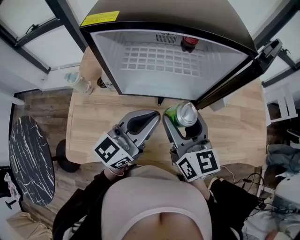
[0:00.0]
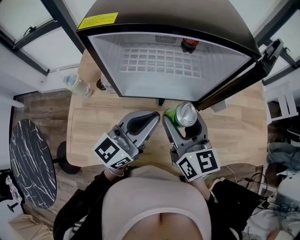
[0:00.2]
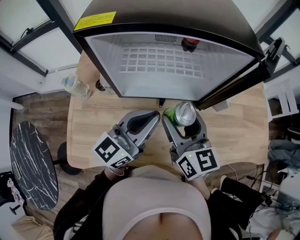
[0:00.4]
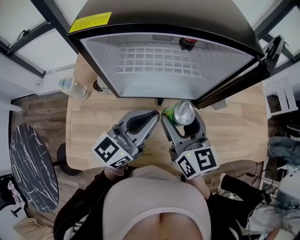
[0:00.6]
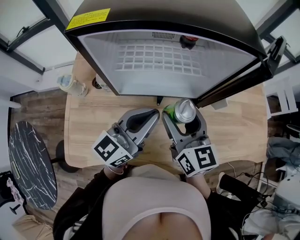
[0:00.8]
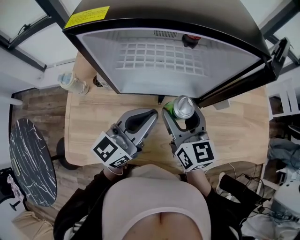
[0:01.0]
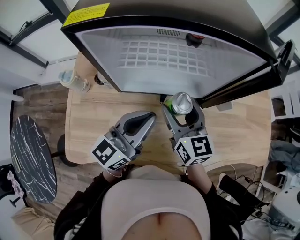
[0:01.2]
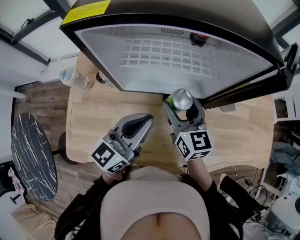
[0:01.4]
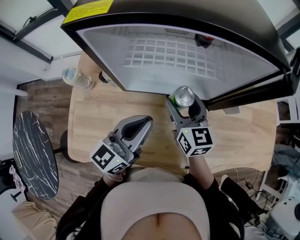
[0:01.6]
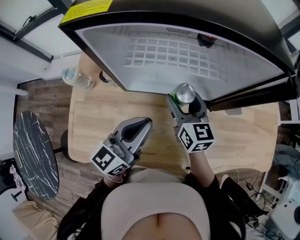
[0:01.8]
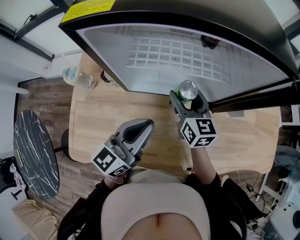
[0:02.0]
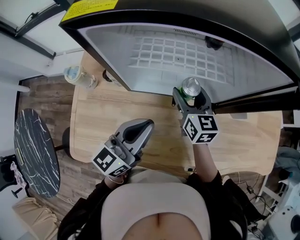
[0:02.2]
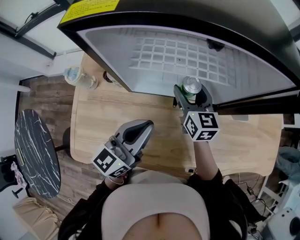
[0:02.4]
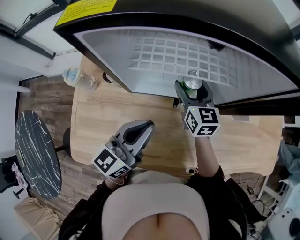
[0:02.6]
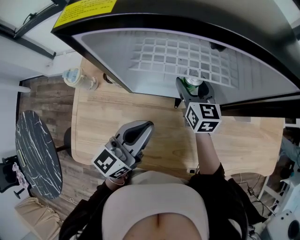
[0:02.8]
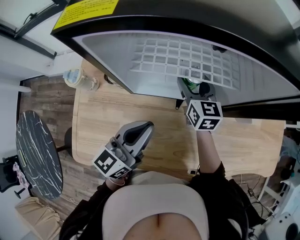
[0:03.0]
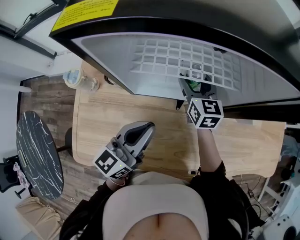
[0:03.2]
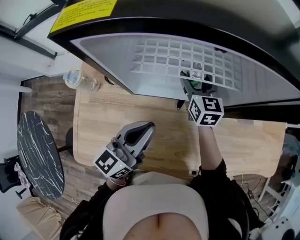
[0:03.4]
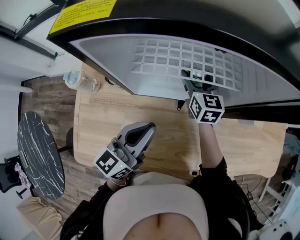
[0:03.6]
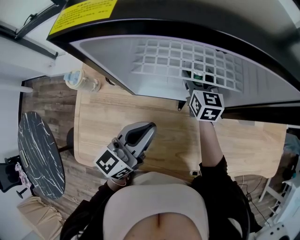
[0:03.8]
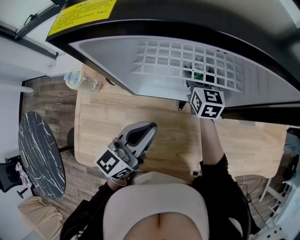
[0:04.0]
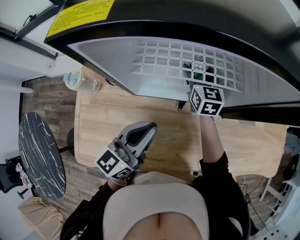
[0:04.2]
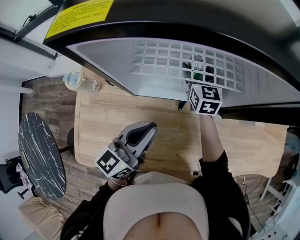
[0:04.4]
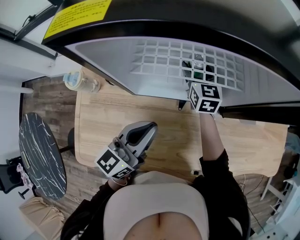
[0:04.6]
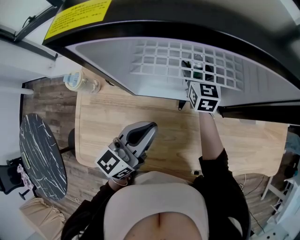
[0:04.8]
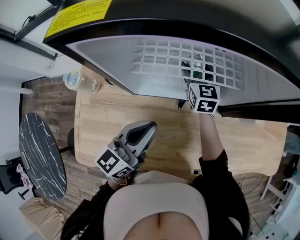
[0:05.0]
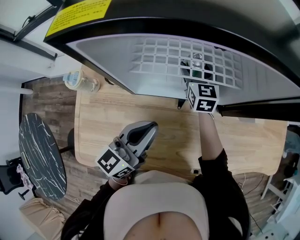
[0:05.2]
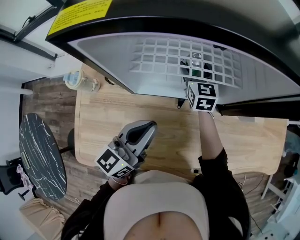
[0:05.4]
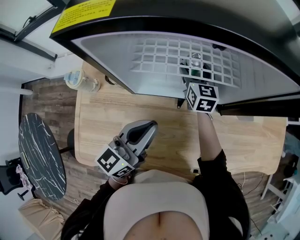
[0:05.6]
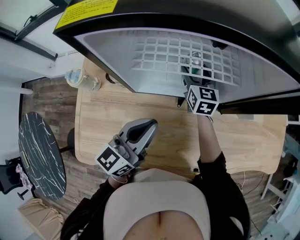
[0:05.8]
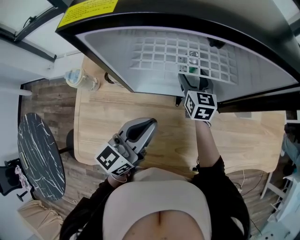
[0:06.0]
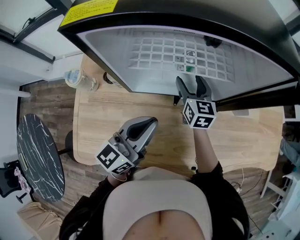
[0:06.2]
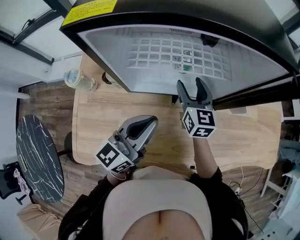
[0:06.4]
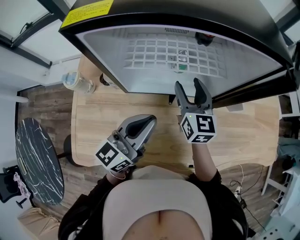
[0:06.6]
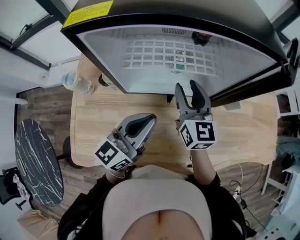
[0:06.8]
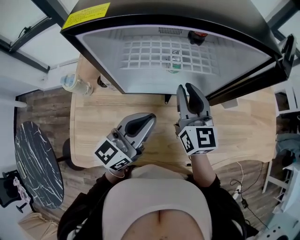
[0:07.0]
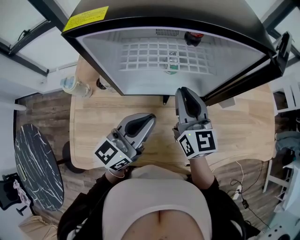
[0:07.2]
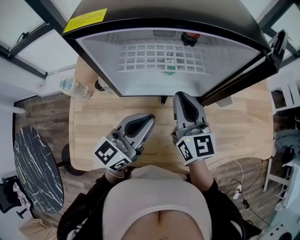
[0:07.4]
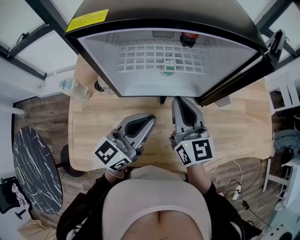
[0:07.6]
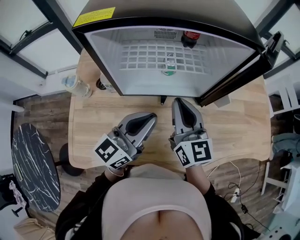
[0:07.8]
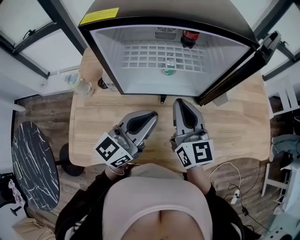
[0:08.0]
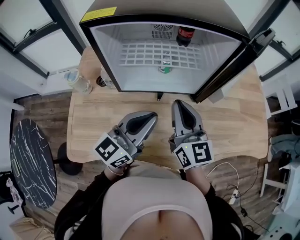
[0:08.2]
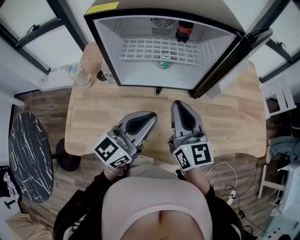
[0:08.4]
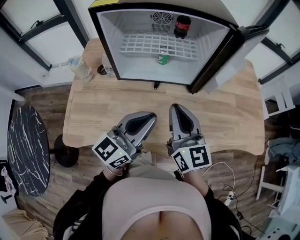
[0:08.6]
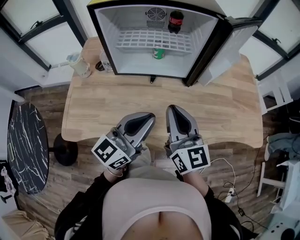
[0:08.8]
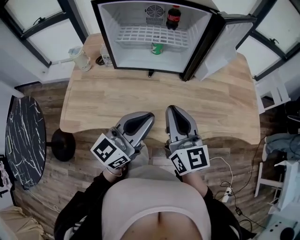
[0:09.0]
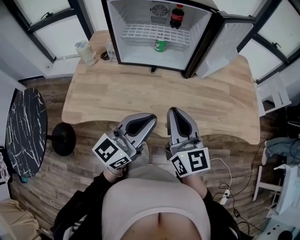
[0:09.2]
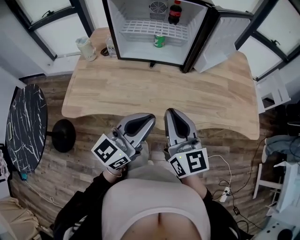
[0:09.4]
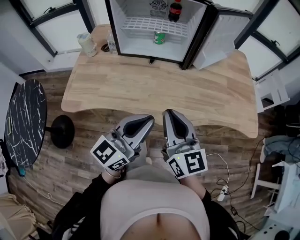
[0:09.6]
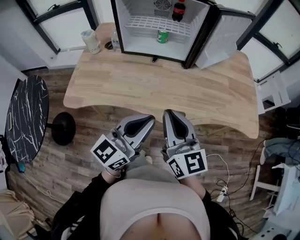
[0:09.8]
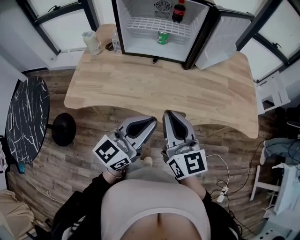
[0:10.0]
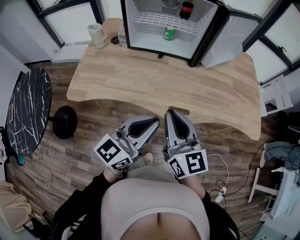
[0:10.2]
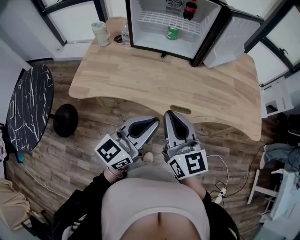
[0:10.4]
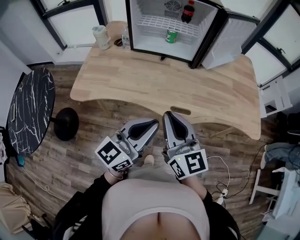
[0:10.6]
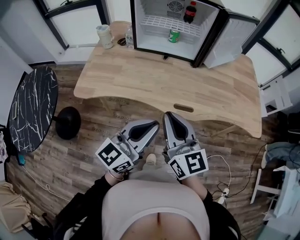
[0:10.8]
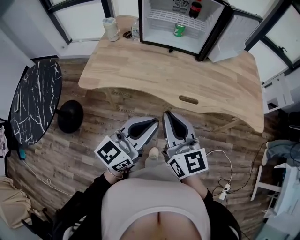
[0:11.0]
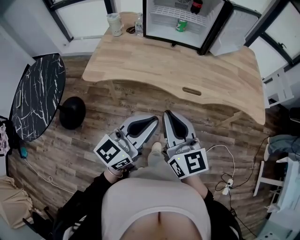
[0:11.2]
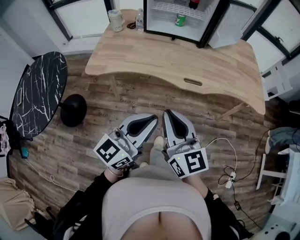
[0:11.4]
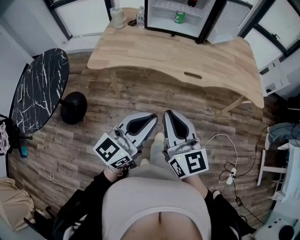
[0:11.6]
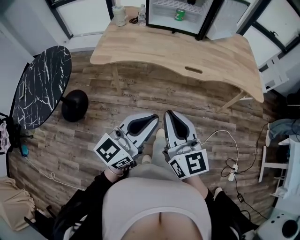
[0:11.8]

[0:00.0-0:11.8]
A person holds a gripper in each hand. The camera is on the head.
0:00.0 to 0:01.4: The left gripper heads downward, covering approximately 5 cm, while the right gripper heads downward and forward, covering about 10 cm.
0:01.4 to 0:03.0: The left gripper shifts by approximately 5 cm; the right gripper travels forward and downward by approximately 15 cm.
0:03.0 to 0:04.4: The right gripper travels forward by approximately 5 cm.
0:04.4 to 0:06.0: There are only small adjustments of the grippers.
0:06.0 to 0:07.4: The right gripper goes some 20 cm upward and backward, swivels roughly 20 degrees, and closes its fingers. The left gripper shifts by approximately 5 cm.
0:07.4 to 0:08.8: Both grippers move backward and to the right, about 20 cm.
0:08.8 to 0:10.4: Both grippers travel together backward, roughly 20 cm.
0:10.4 to 0:11.8: Both grippers travel together backward, approximately 30 cm.

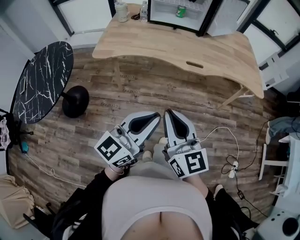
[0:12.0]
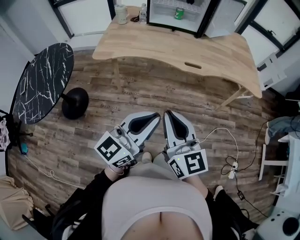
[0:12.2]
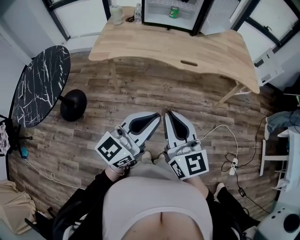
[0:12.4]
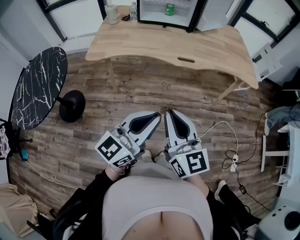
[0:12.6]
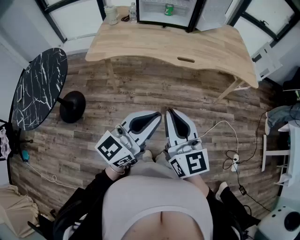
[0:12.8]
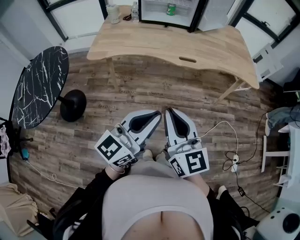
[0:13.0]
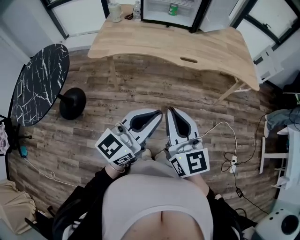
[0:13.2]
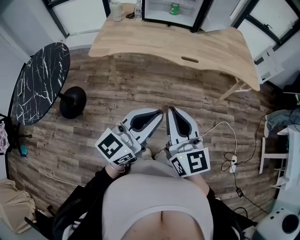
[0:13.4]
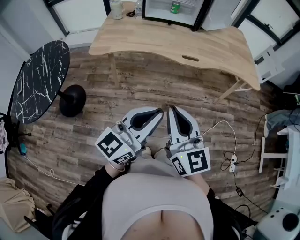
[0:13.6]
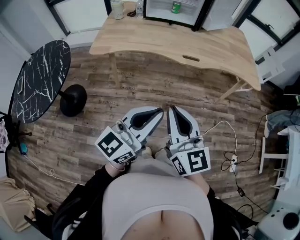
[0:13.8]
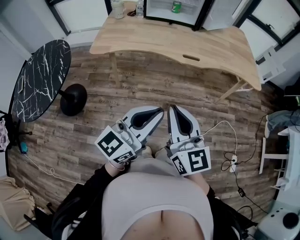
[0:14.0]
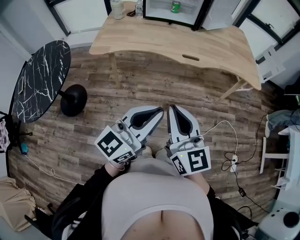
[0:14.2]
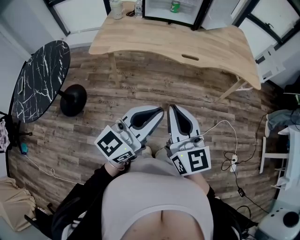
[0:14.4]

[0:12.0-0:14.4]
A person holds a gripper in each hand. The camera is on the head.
0:12.0 to 0:13.2: The grippers stay close to where they were, moving slightly.
0:13.2 to 0:14.4: Both grippers stay about where they are.

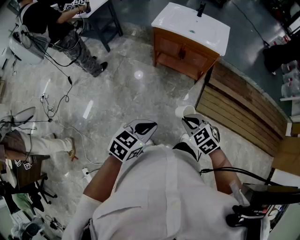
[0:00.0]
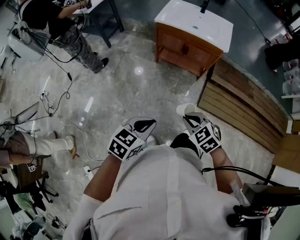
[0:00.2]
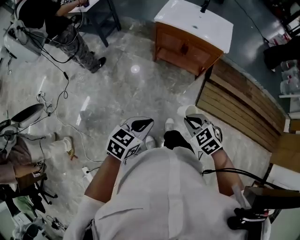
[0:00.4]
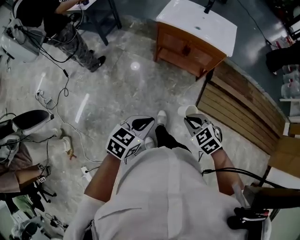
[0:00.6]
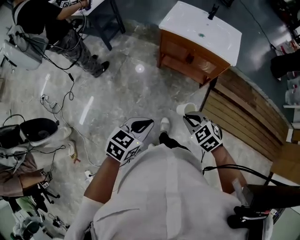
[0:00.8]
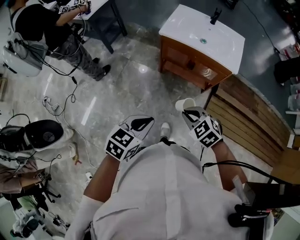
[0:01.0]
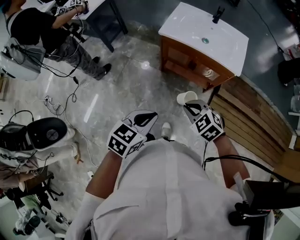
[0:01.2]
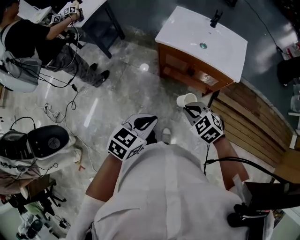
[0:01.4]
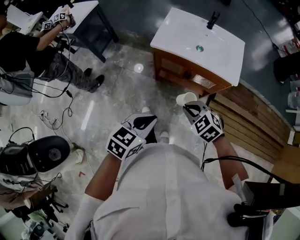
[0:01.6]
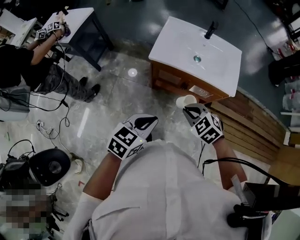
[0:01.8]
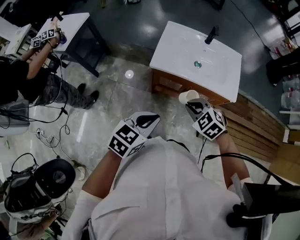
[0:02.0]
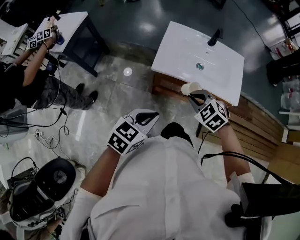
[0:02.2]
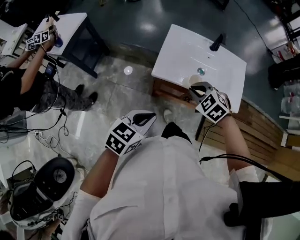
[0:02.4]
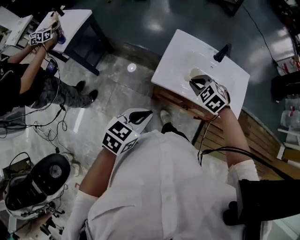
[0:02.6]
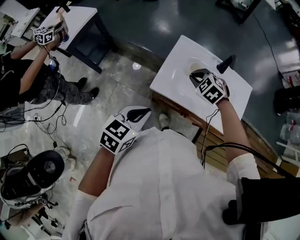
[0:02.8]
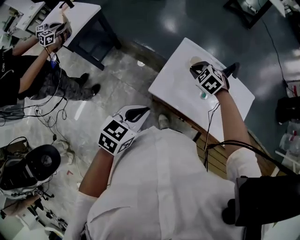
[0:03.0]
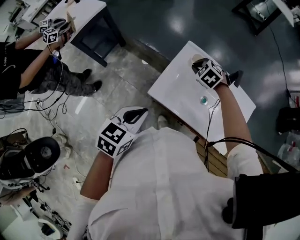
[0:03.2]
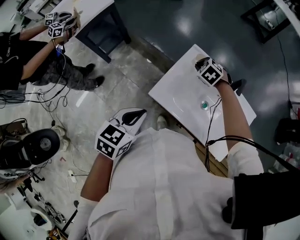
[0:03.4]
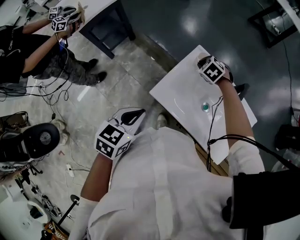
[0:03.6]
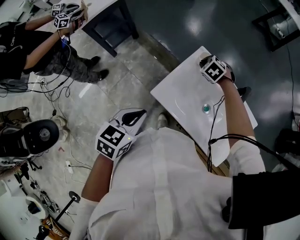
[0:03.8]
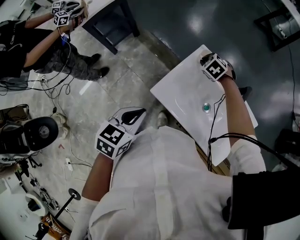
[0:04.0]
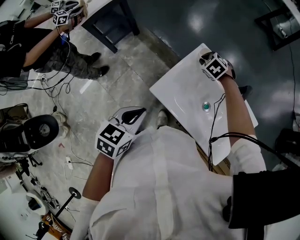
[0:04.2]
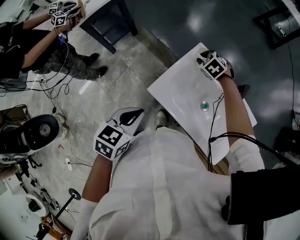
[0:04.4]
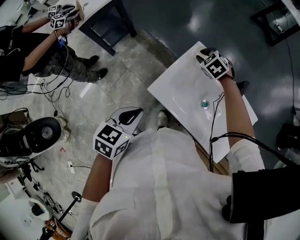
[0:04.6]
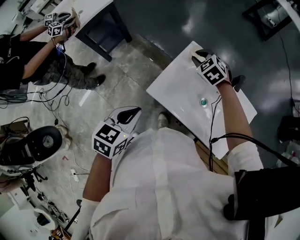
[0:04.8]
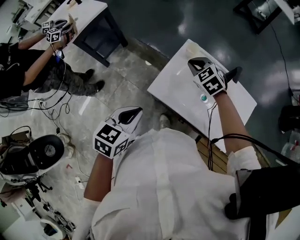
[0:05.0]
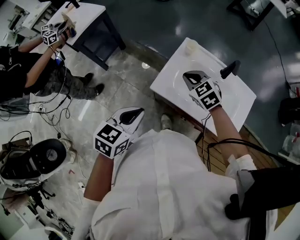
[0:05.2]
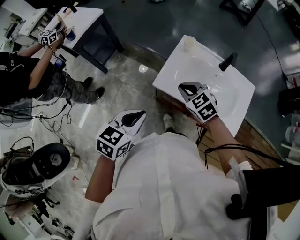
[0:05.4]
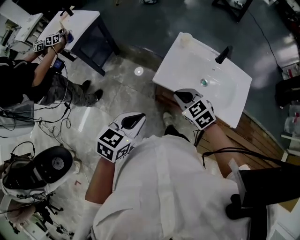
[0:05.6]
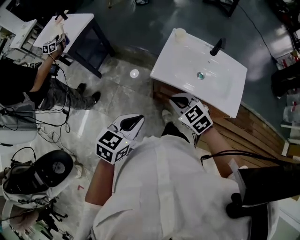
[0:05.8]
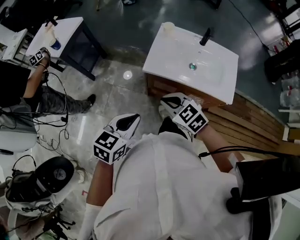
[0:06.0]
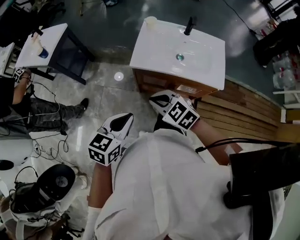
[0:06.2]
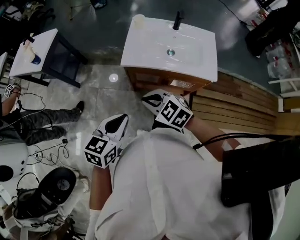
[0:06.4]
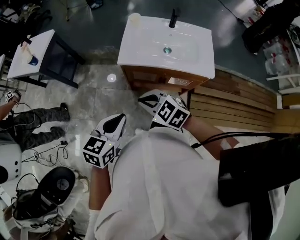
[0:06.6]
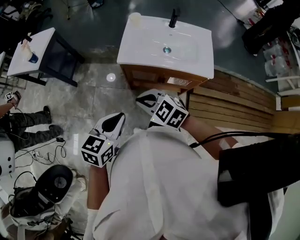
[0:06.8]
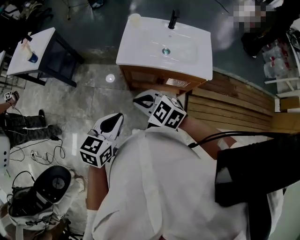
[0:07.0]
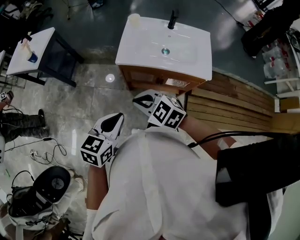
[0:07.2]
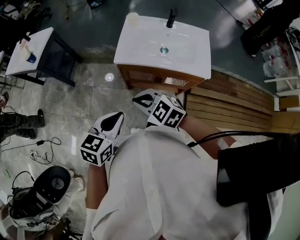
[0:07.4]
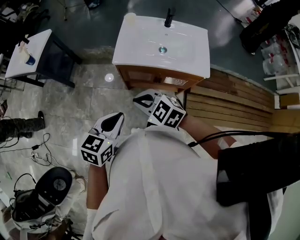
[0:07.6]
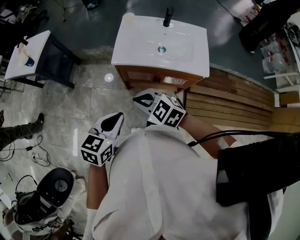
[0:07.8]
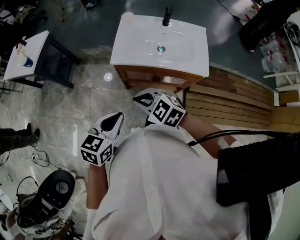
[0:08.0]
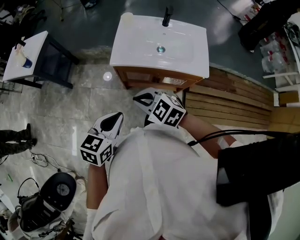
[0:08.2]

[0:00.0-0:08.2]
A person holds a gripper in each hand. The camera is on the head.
0:00.0 to 0:01.6: Both grippers move forward, roughly 35 cm.
0:01.6 to 0:03.2: The right gripper goes approximately 50 cm forward. Meanwhile the left gripper moves forward, some 35 cm.
0:03.2 to 0:05.0: The left gripper changes place by some 5 cm; the right gripper heads upward and backward, covering roughly 10 cm.
0:05.0 to 0:06.6: The right gripper travels backward by roughly 50 cm. Meanwhile the left gripper travels backward by some 30 cm, and changes its angle by about 20 degrees.
0:06.6 to 0:08.2: There are only small adjustments of the grippers.

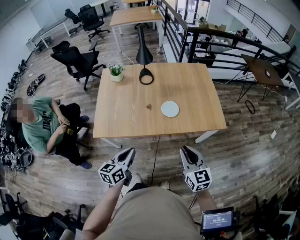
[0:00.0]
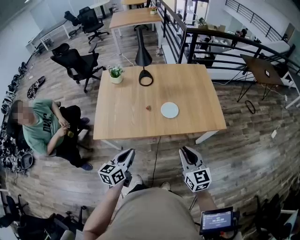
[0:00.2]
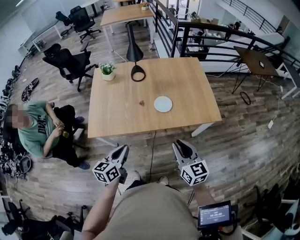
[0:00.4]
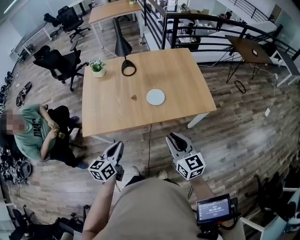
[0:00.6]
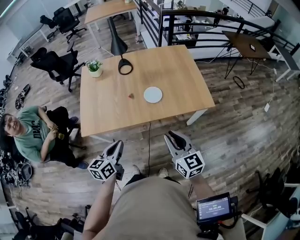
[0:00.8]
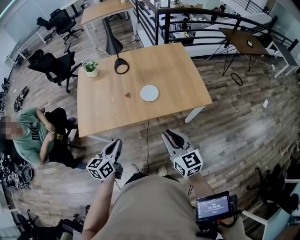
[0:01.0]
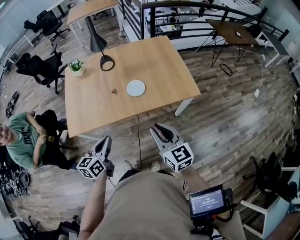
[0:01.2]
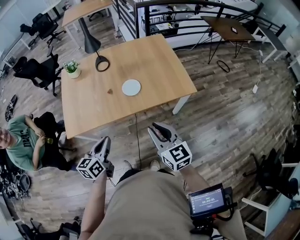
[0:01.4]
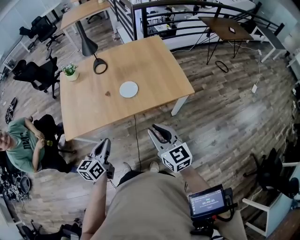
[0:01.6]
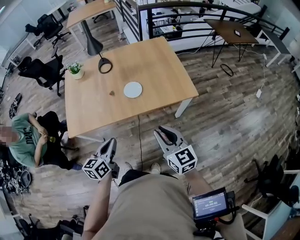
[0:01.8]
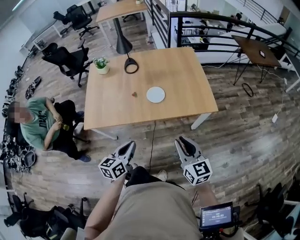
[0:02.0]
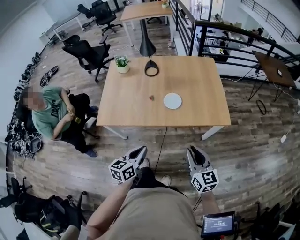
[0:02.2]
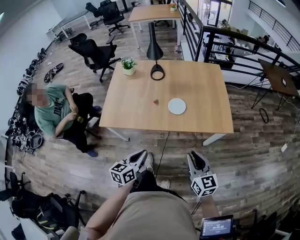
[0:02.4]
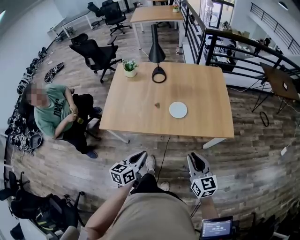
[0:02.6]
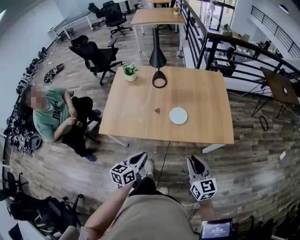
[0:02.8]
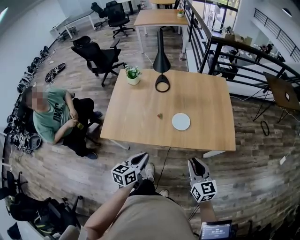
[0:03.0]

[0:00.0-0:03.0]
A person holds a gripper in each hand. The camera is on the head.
0:00.0 to 0:01.6: Both grippers move to the right, about 10 cm.
0:01.6 to 0:03.0: The grippers both shift forward by roughly 10 cm.
